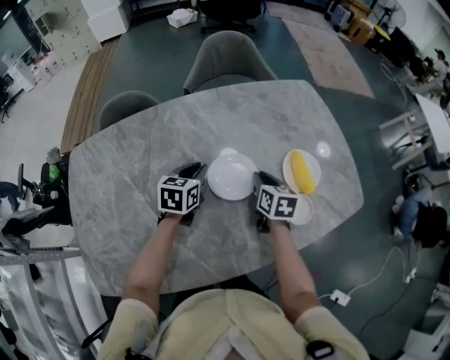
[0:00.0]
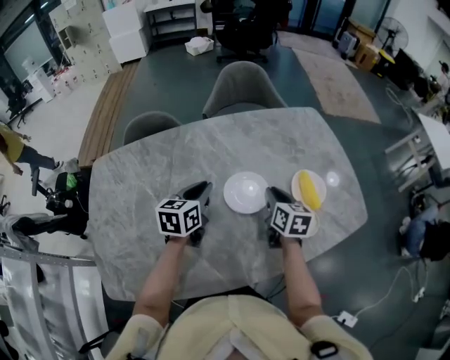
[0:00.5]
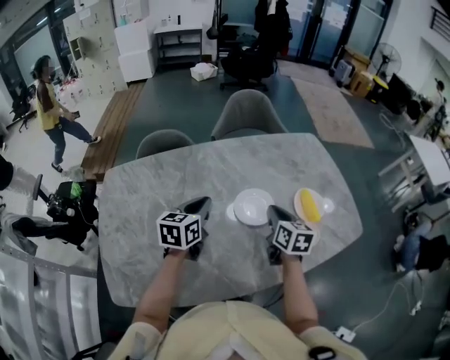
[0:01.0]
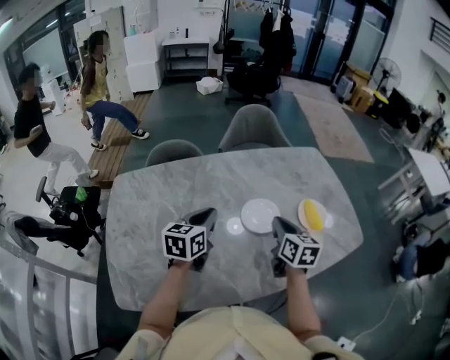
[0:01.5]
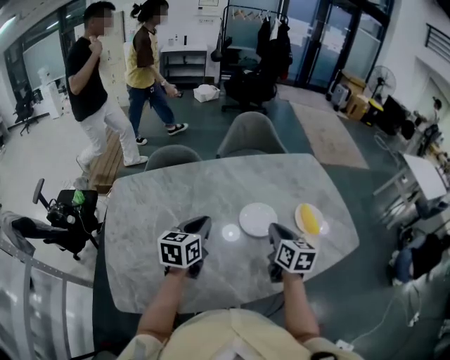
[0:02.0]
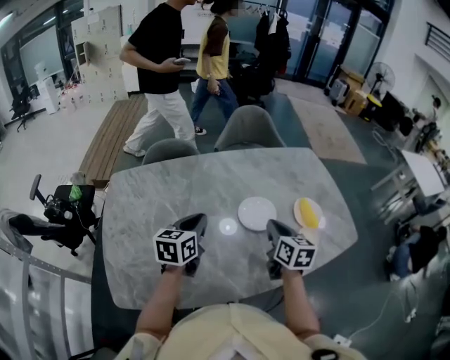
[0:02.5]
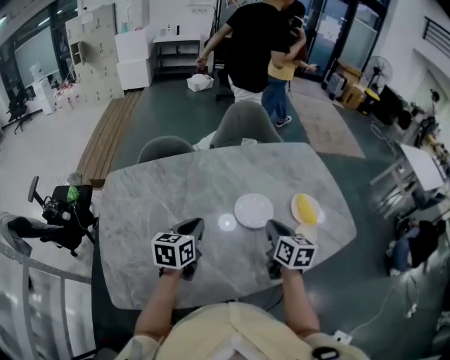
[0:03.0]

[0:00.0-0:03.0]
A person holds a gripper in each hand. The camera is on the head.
0:00.0 to 0:01.5: The two grippers go some 20 cm upward, backward and to the left.
0:01.5 to 0:03.0: The left gripper ends up some 5 cm from where it was.

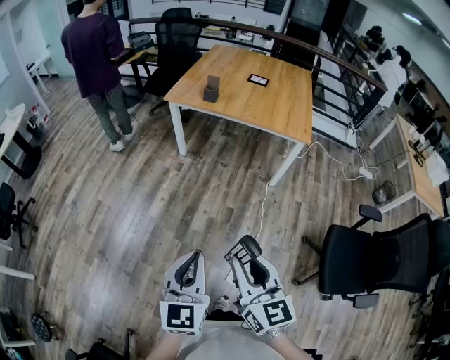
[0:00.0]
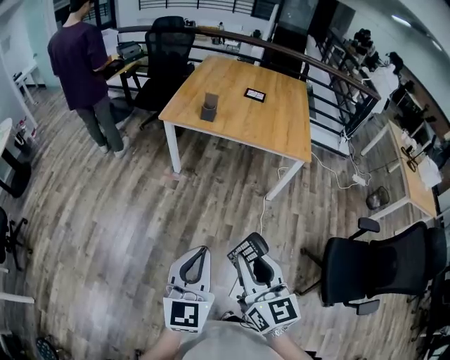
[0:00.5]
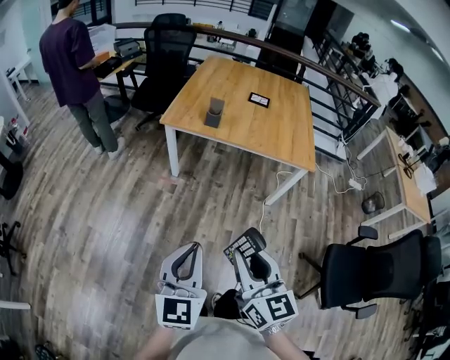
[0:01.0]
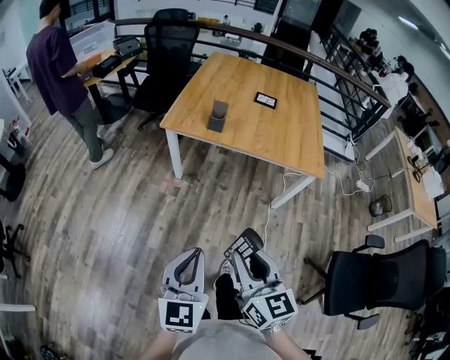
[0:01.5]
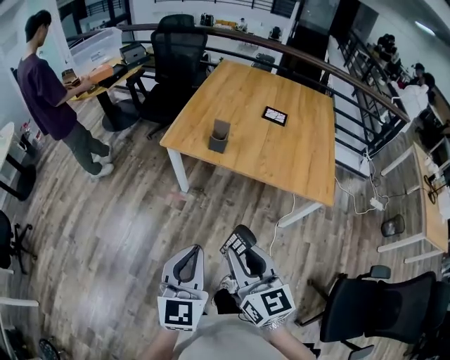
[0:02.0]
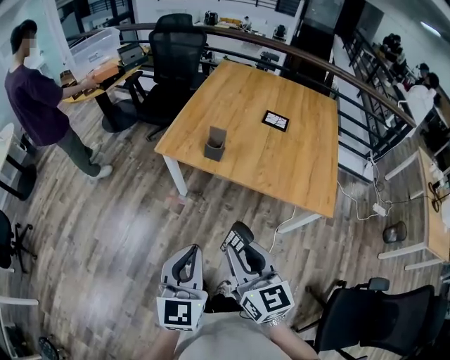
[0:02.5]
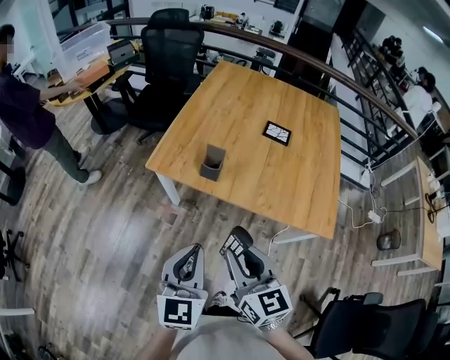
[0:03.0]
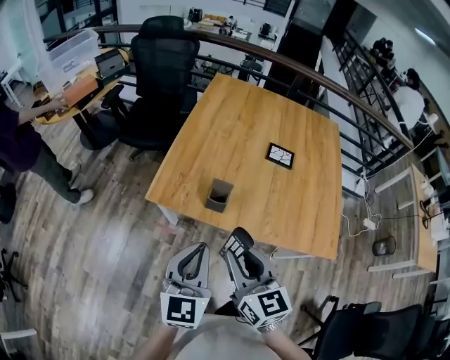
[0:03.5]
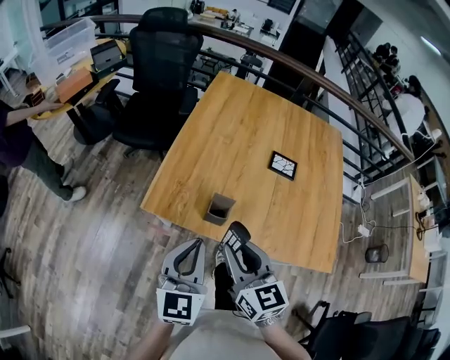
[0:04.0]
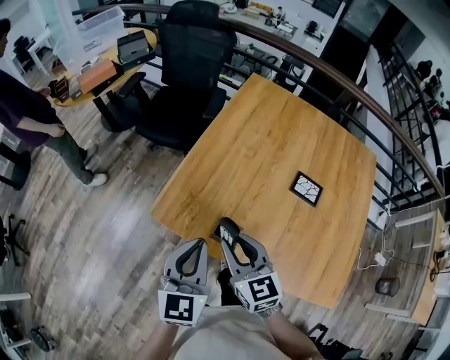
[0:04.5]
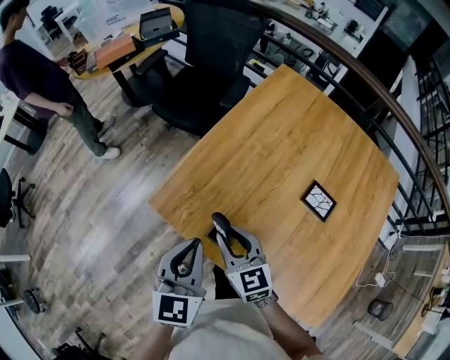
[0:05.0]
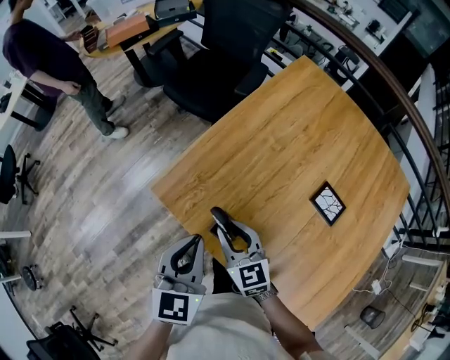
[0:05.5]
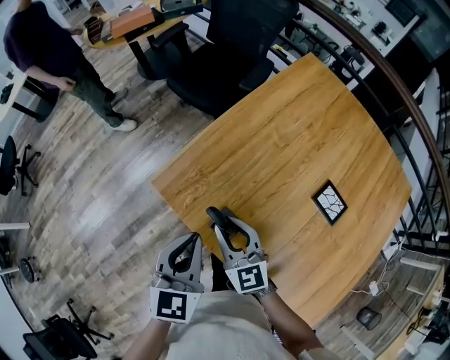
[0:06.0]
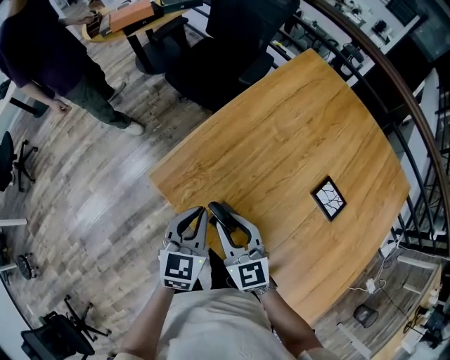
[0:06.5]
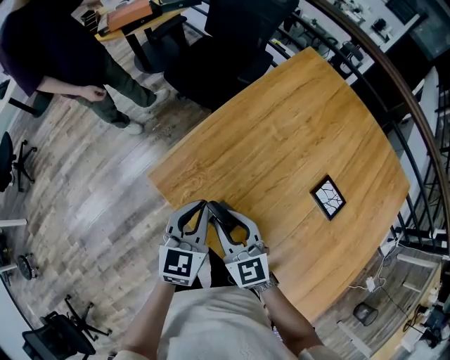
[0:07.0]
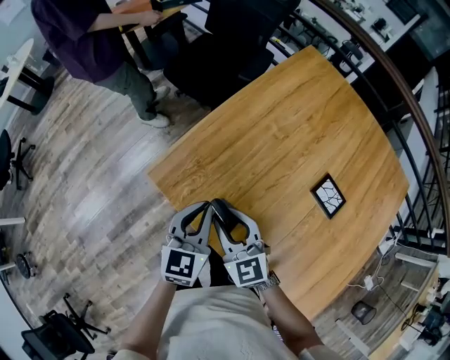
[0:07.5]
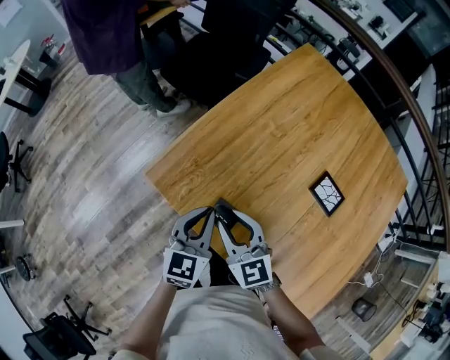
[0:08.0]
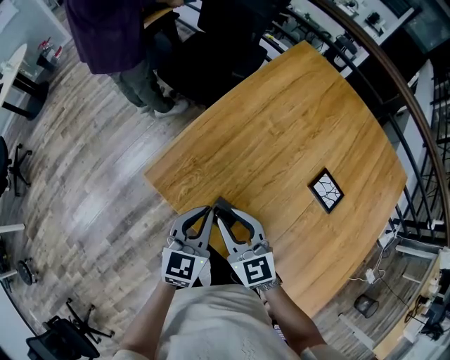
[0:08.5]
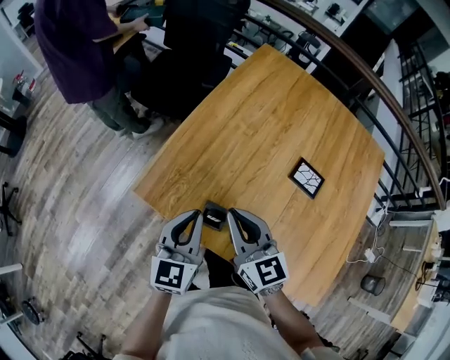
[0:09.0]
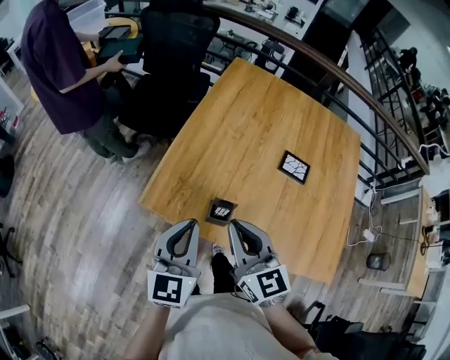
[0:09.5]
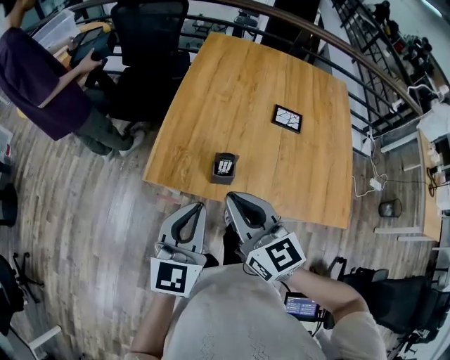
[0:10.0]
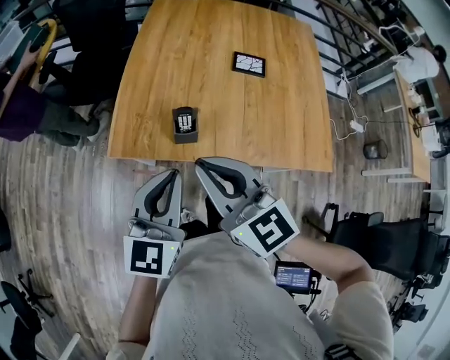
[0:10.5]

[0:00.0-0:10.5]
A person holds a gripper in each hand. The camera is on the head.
0:00.0 to 0:02.0: Both grippers are carried forward, roughly 50 cm.
0:02.0 to 0:04.0: Both grippers are carried forward, some 50 cm.
0:04.0 to 0:06.5: The right gripper changes place by approximately 25 cm, and swivels approximately 40 degrees, while the left gripper ends up approximately 25 cm from where it was, and changes its angle by approximately 30 degrees.
0:06.5 to 0:08.5: There are only small adjustments of the grippers.
0:08.5 to 0:10.5: The left gripper moves some 25 cm, and turns by roughly 30 degrees. The right gripper shifts by roughly 25 cm, turns by roughly 30 degrees, and closes.

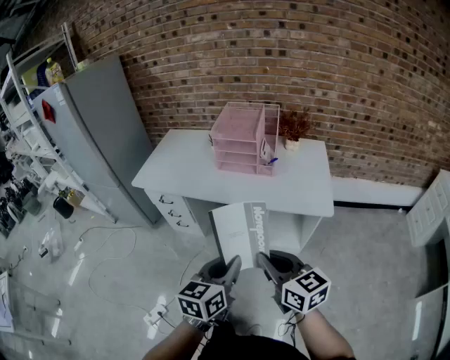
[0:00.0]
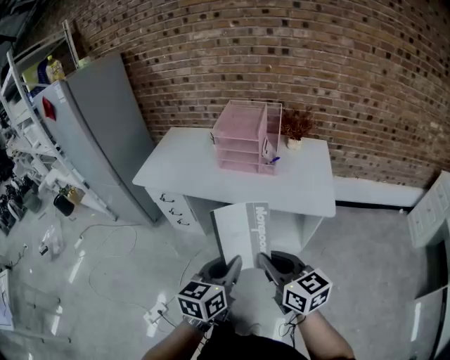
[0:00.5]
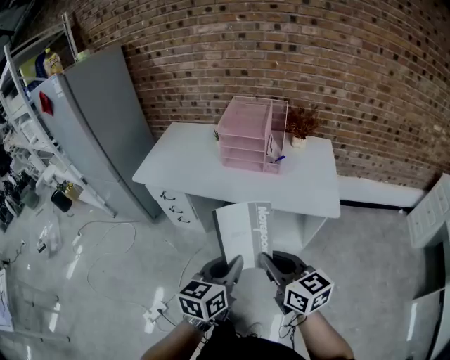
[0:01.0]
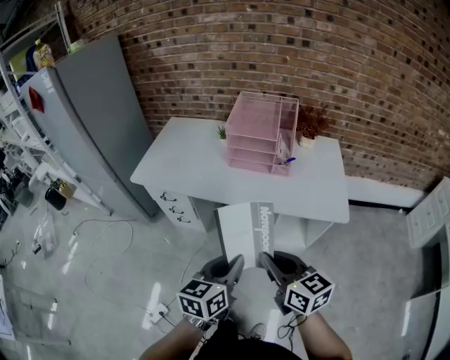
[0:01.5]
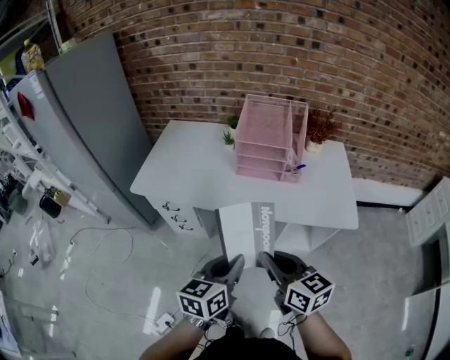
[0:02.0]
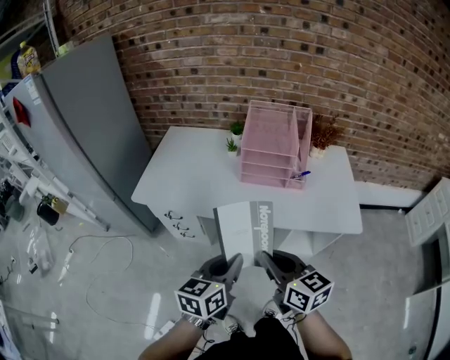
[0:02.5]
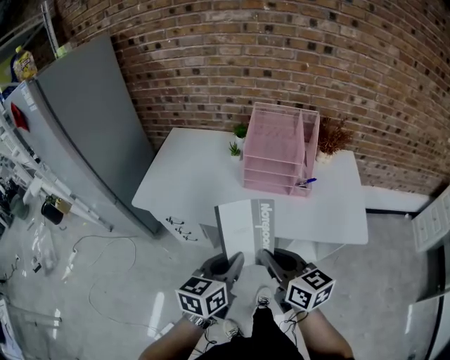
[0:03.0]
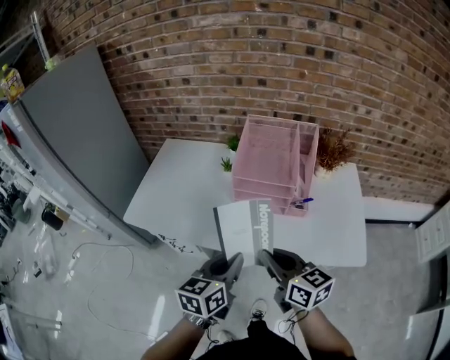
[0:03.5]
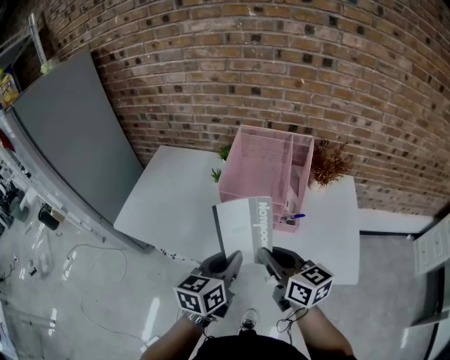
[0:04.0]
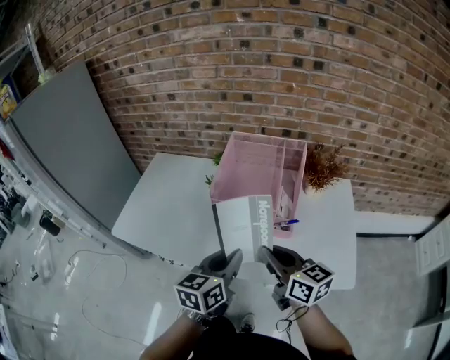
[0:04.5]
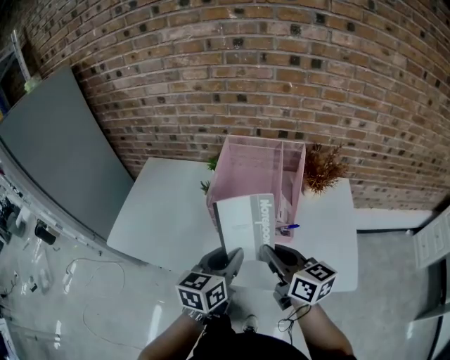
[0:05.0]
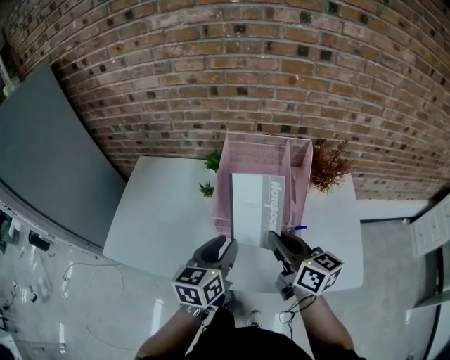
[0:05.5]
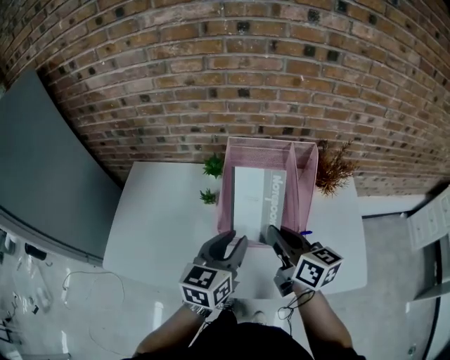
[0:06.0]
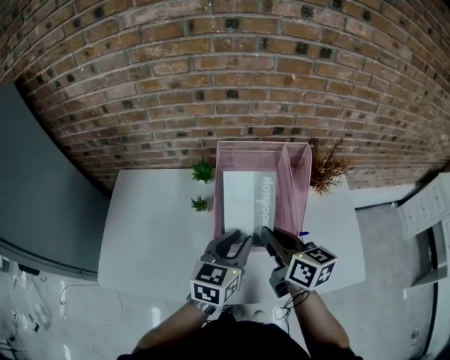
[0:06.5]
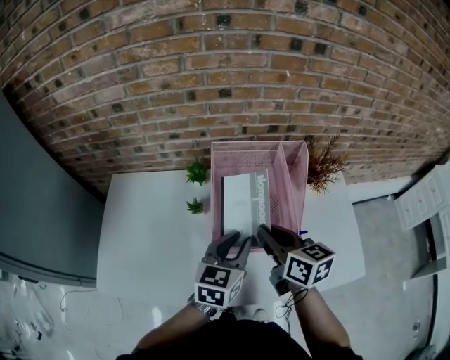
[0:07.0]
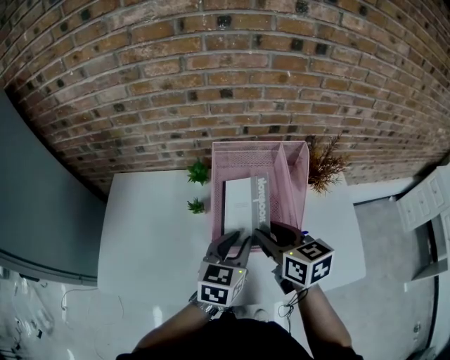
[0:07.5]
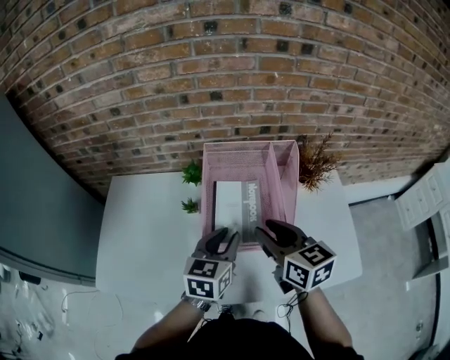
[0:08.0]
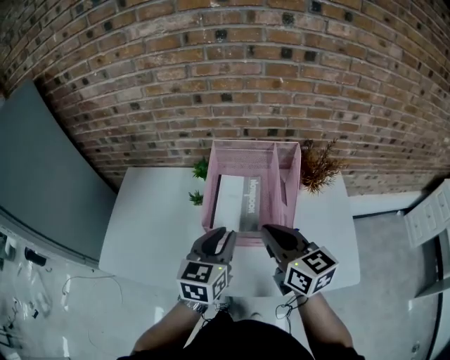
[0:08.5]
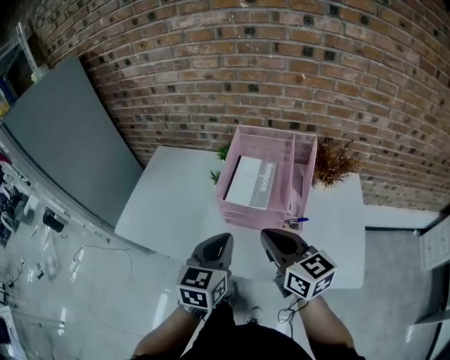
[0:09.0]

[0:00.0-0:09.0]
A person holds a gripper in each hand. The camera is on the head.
0:00.0 to 0:02.0: Both grippers move forward and to the left, roughly 20 cm.
0:02.0 to 0:04.5: Both grippers travel together forward and to the right, some 30 cm.
0:04.5 to 0:07.0: The grippers both shift forward by about 20 cm. The left gripper swivels some 20 degrees. Meanwhile the right gripper swivels about 20 degrees.
0:07.0 to 0:09.0: The two grippers go about 15 cm backward. The left gripper rotates approximately 20 degrees, and closes. Meanwhile the right gripper swivels some 30 degrees, and opens, then closes again.

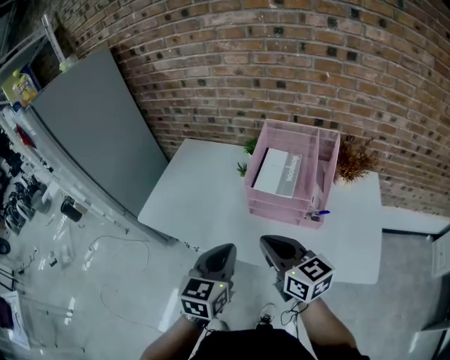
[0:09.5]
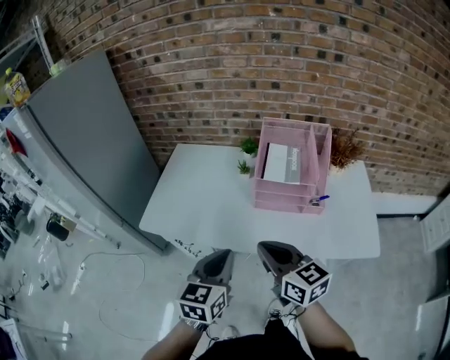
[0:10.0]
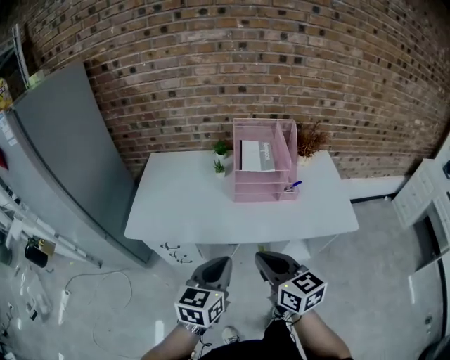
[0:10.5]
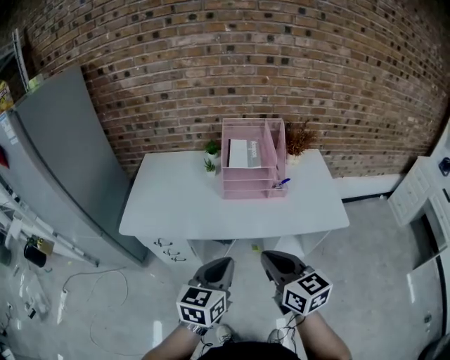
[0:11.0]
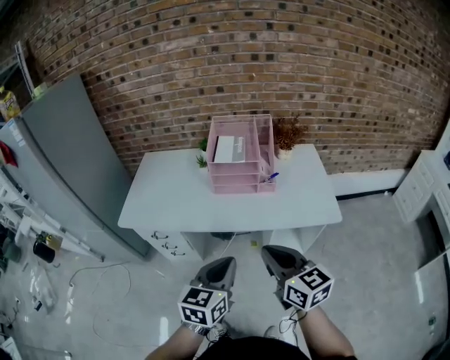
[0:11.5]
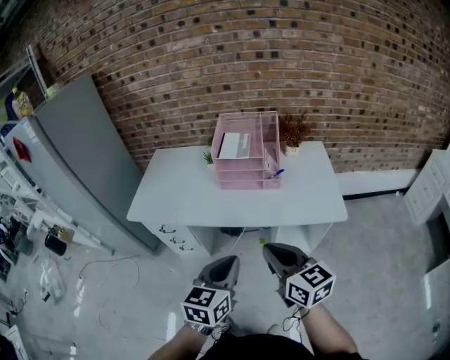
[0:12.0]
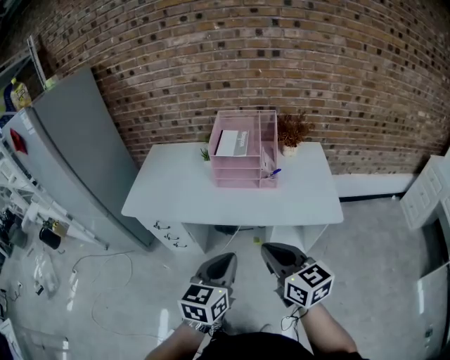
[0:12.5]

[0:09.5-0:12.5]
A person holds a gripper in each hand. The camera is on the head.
0:09.5 to 0:11.0: Both grippers move backward, approximately 20 cm. The left gripper changes its angle by some 20 degrees. The right gripper changes its angle by about 20 degrees.
0:11.0 to 0:12.5: The grippers both shift to the right and backward by about 10 cm.

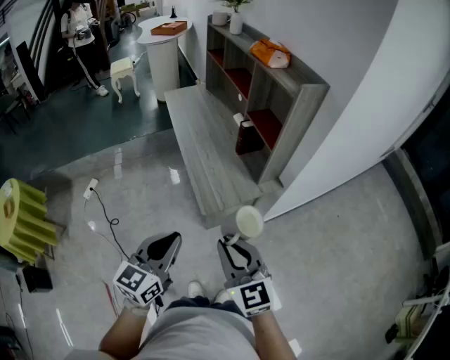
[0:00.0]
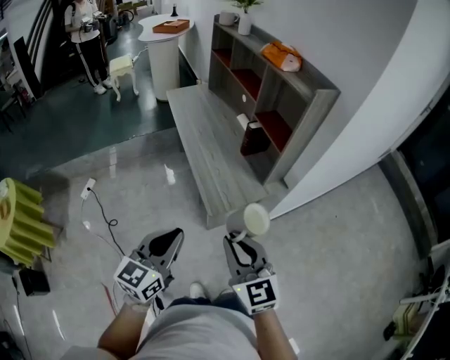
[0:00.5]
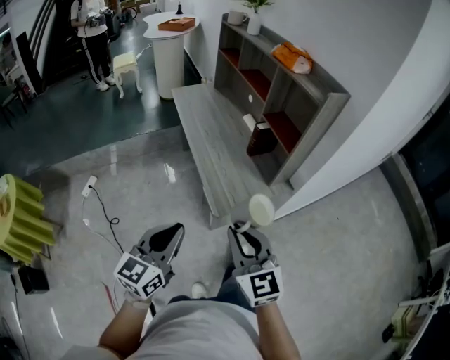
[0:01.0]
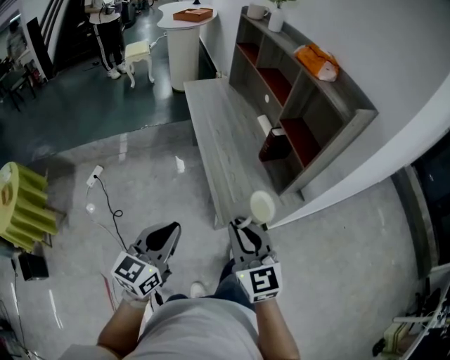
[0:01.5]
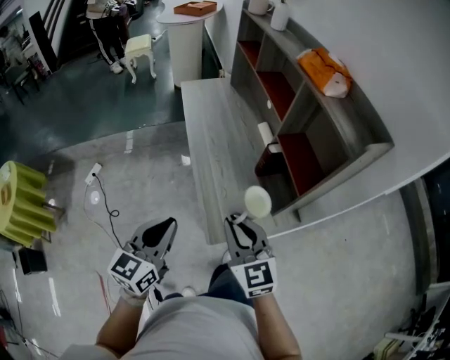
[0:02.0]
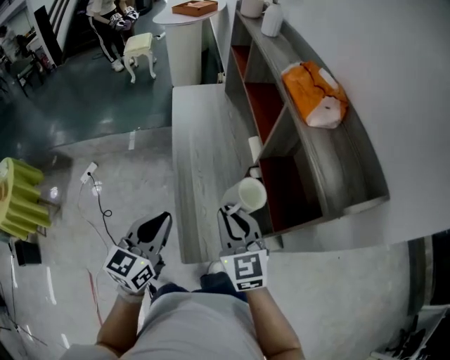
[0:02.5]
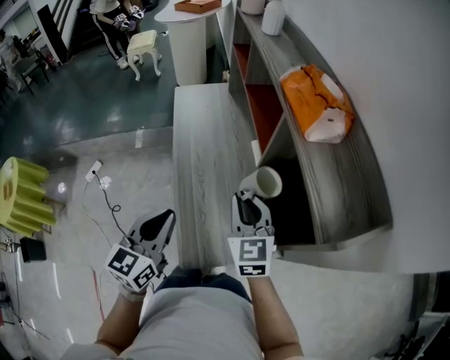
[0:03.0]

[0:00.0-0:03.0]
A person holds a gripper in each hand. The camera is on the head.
0:00.0 to 0:01.5: The left gripper moves to the left and forward, about 15 cm, while the right gripper moves forward and to the left, roughly 15 cm.
0:01.5 to 0:03.0: The grippers both shift forward and to the right by some 35 cm.
